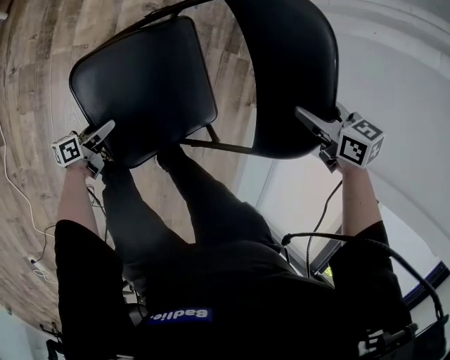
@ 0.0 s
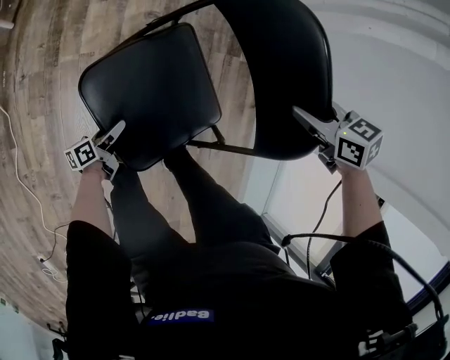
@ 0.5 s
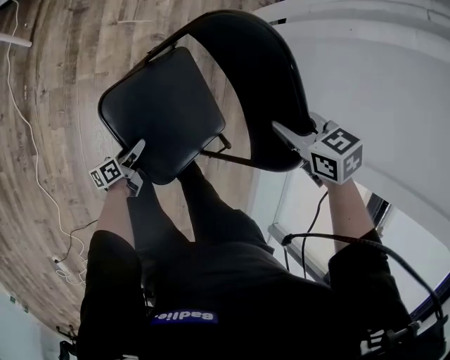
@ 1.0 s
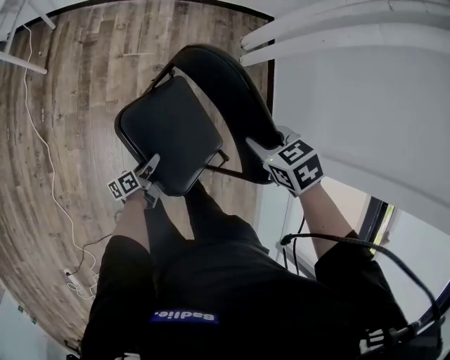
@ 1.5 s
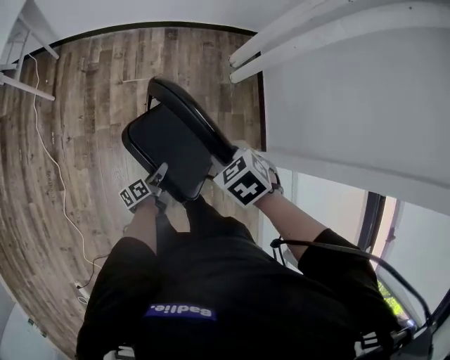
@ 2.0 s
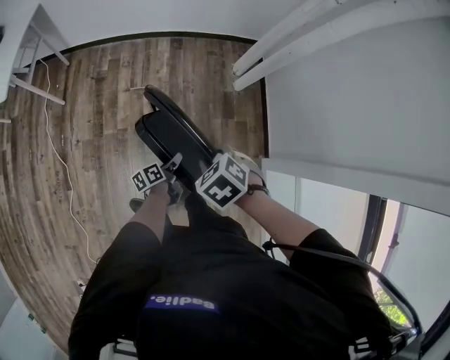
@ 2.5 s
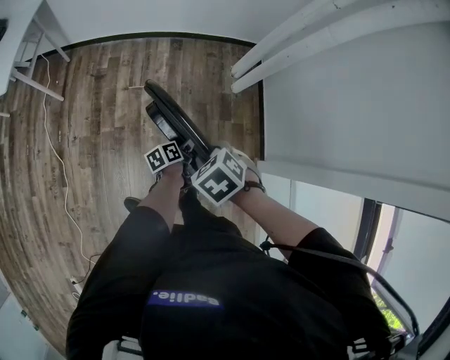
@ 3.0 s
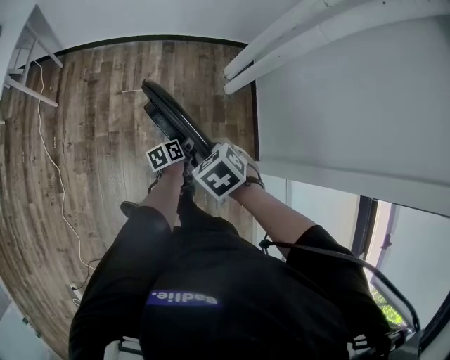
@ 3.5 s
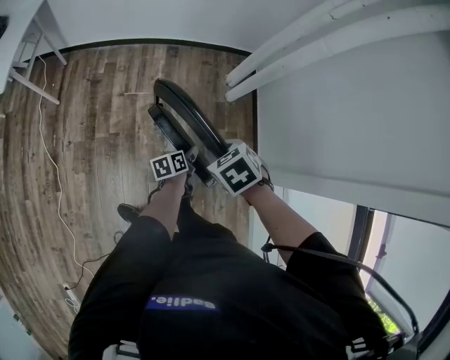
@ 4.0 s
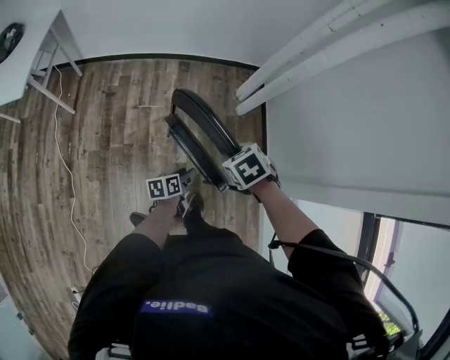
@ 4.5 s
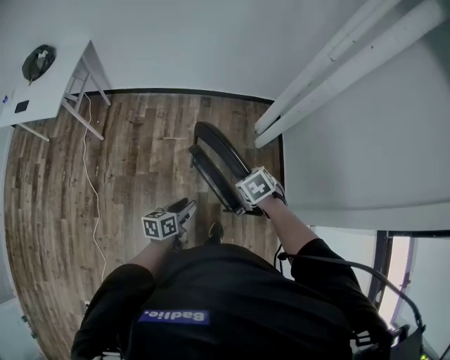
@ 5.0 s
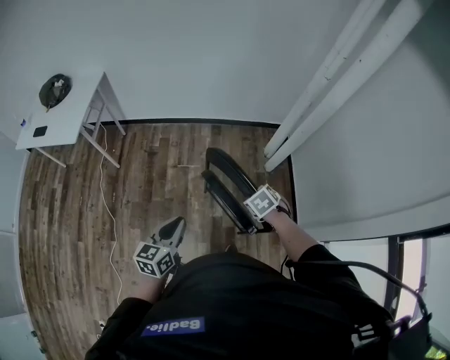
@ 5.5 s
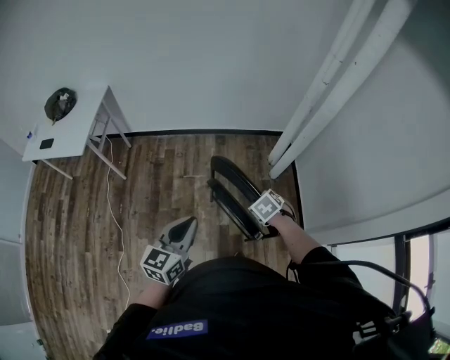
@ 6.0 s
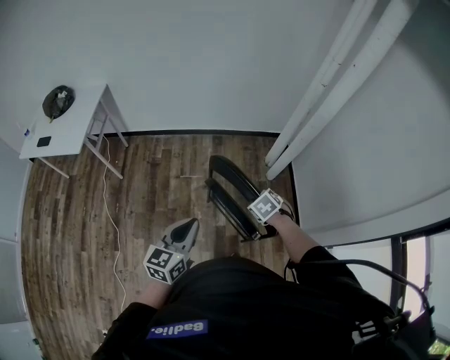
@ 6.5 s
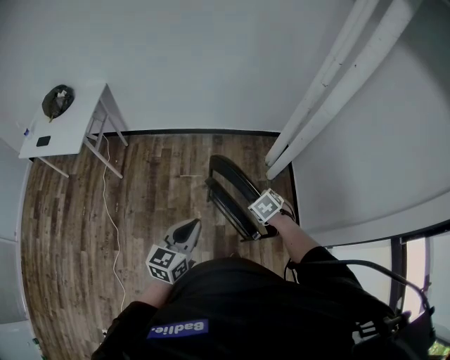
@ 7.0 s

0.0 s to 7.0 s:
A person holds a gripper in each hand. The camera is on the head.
0.0 to 2.0 s: The right gripper heads upward and to the left, covering about 20 cm, and closes. The left gripper shifts about 30 cm upward and to the right, and closes up.
2.0 to 3.5 s: The left gripper changes place by roughly 20 cm.
3.5 to 5.0 s: The left gripper travels upward, to the left and backward by approximately 25 cm, and rotates roughly 30 degrees; the right gripper changes place by roughly 5 cm.
5.0 to 7.0 s: The left gripper shifts roughly 20 cm upward, swivels roughly 30 degrees, and closes its fingers.

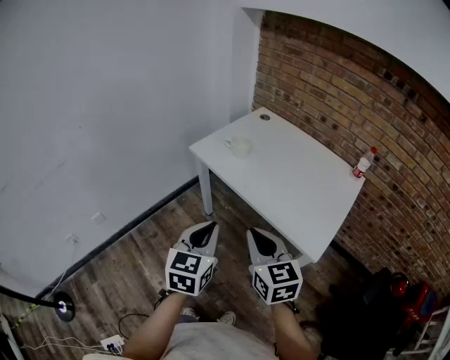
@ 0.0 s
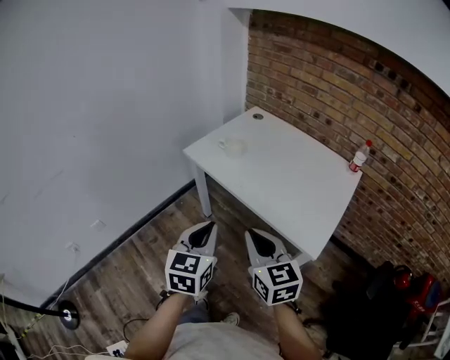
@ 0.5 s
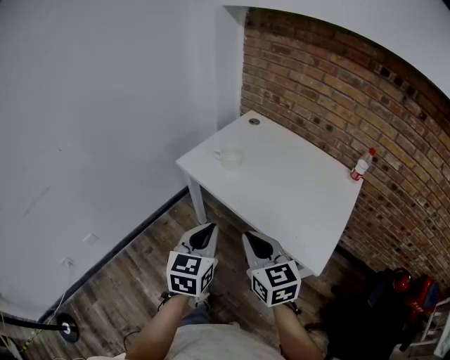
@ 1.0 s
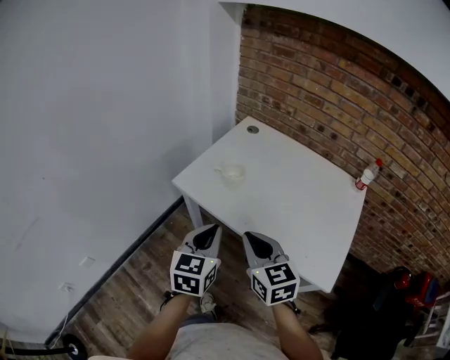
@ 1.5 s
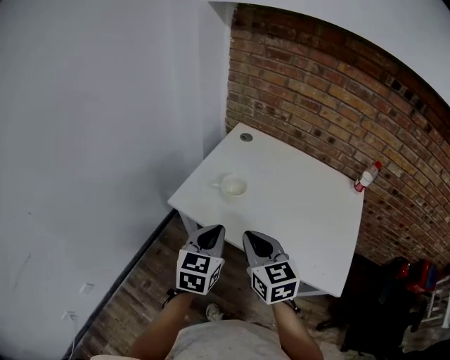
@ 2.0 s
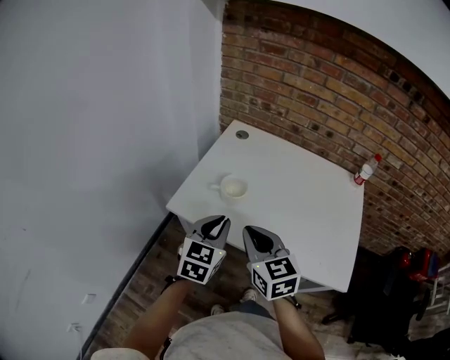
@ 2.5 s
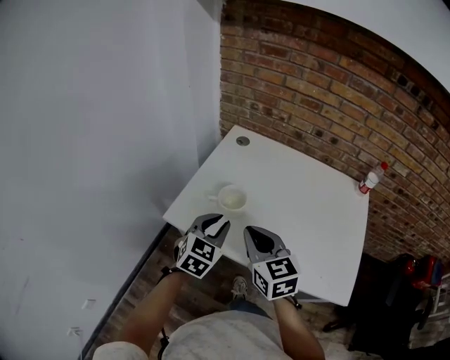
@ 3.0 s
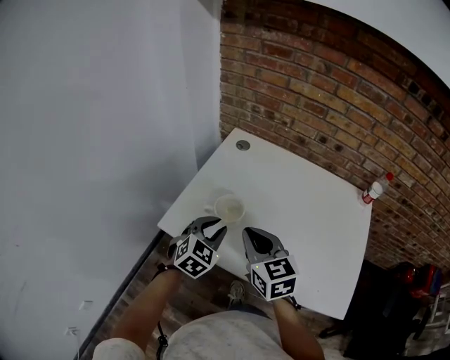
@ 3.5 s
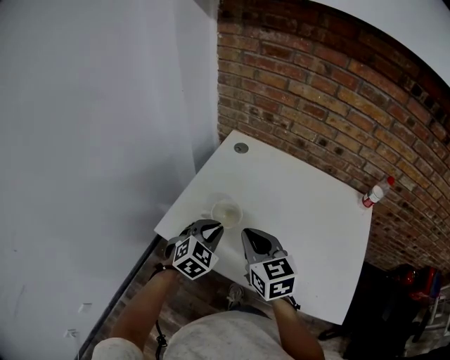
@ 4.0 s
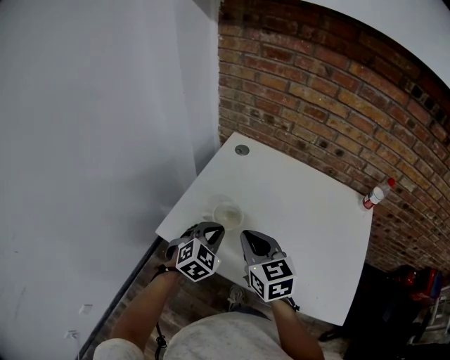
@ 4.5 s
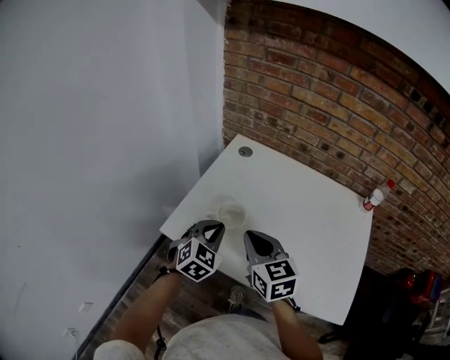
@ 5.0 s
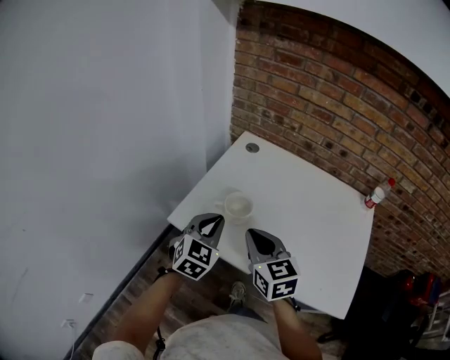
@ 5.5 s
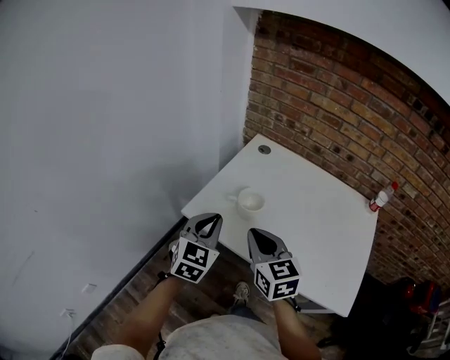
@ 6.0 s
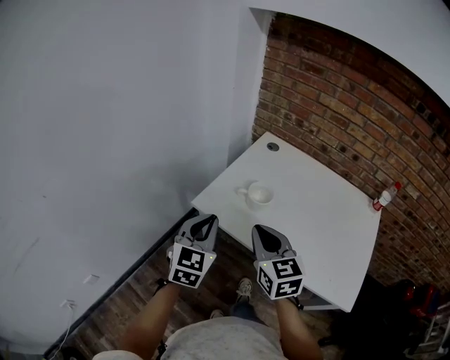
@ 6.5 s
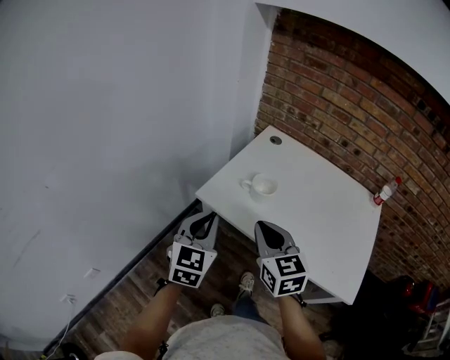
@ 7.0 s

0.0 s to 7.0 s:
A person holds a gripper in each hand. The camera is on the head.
0.0 to 2.0 s: The two grippers go some 30 cm forward.
2.0 to 3.5 s: The left gripper moves forward and downward, approximately 15 cm, rotates roughly 30 degrees, and opens up, while the right gripper is displaced forward by roughly 15 cm.
3.5 to 5.0 s: The grippers move only a little.
5.0 to 7.0 s: The left gripper moves backward, to the left and upward, roughly 20 cm, and turns by some 30 degrees, while the right gripper heads backward and to the left, covering roughly 15 cm.

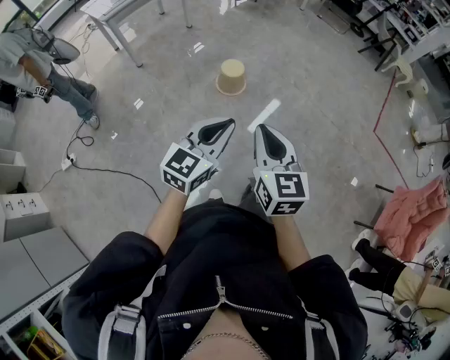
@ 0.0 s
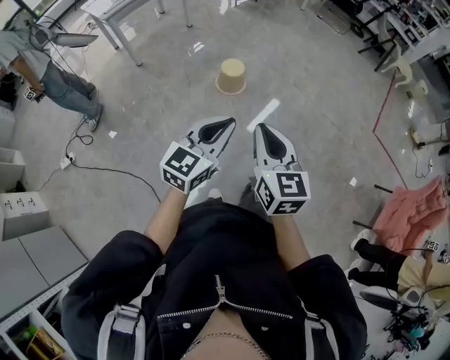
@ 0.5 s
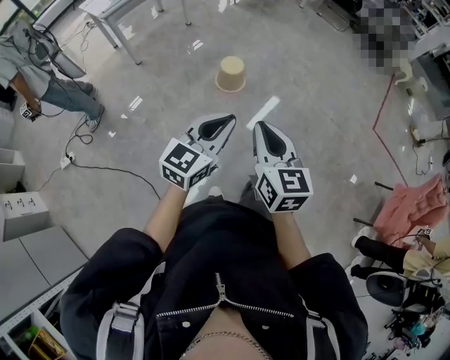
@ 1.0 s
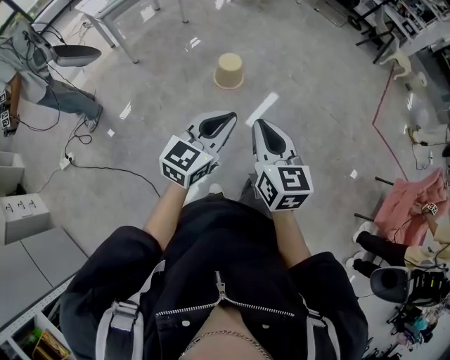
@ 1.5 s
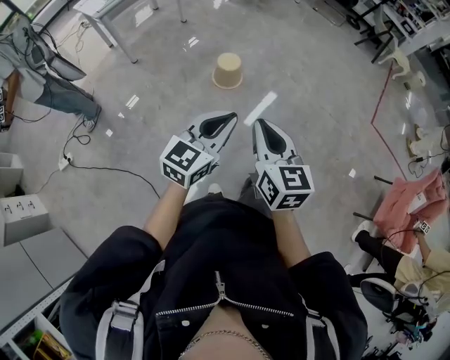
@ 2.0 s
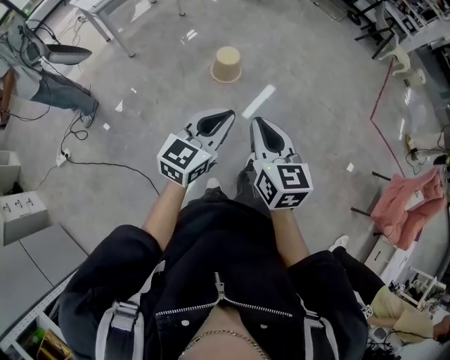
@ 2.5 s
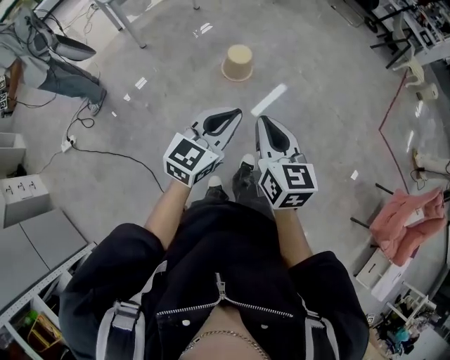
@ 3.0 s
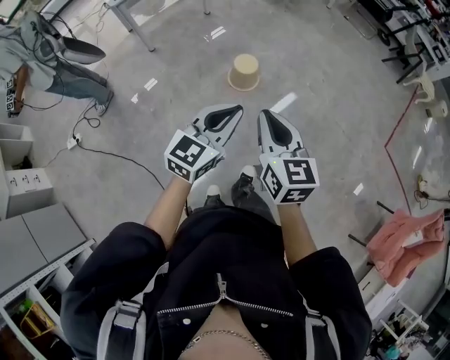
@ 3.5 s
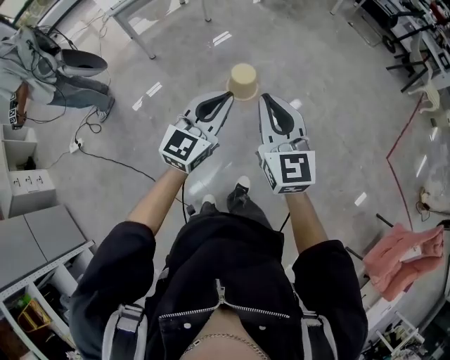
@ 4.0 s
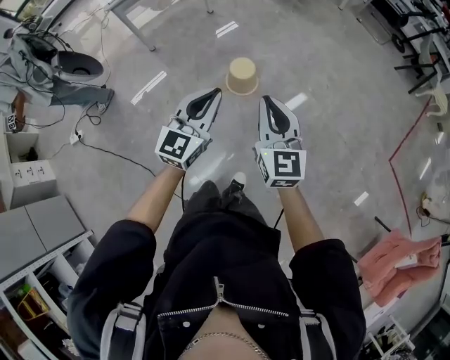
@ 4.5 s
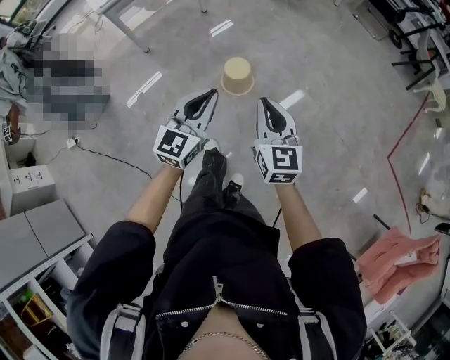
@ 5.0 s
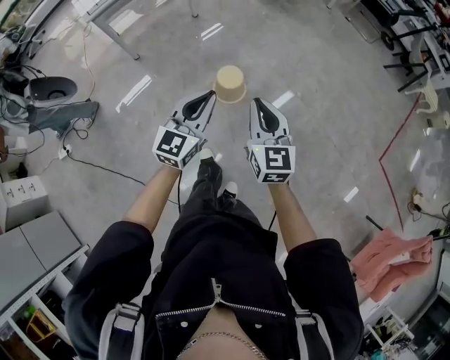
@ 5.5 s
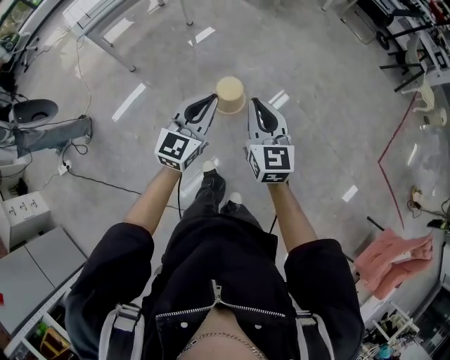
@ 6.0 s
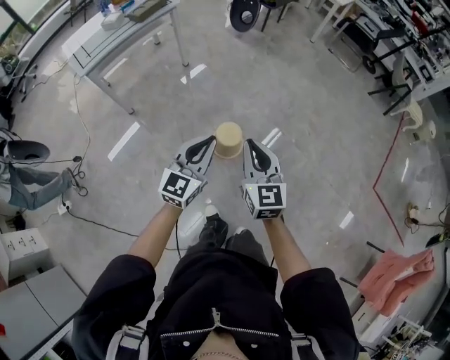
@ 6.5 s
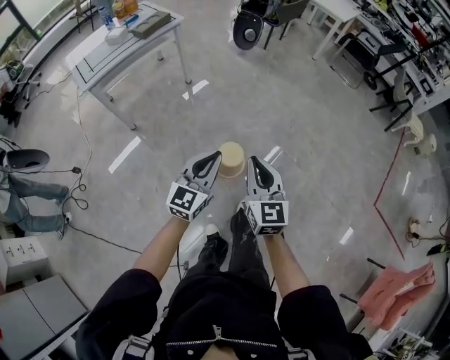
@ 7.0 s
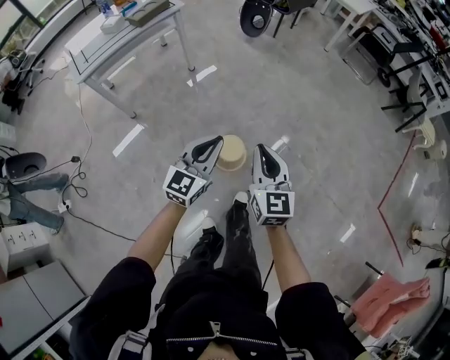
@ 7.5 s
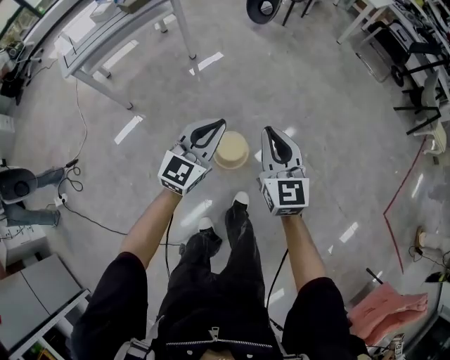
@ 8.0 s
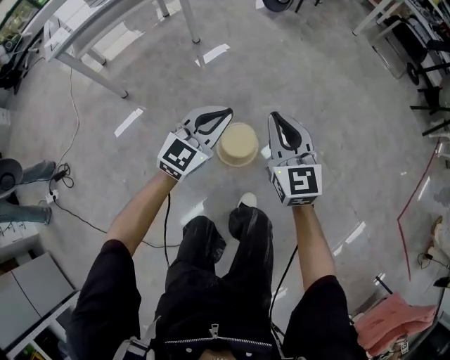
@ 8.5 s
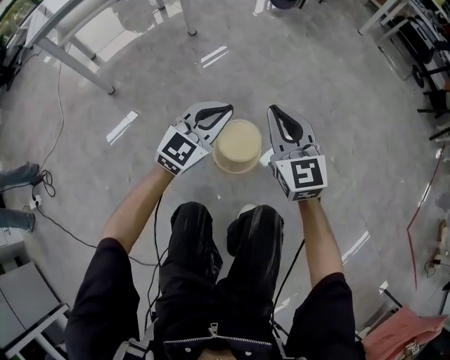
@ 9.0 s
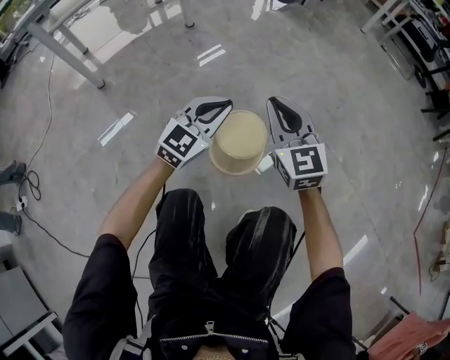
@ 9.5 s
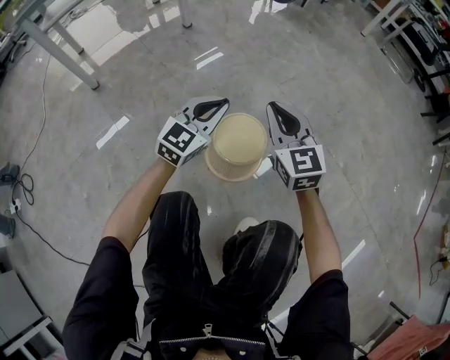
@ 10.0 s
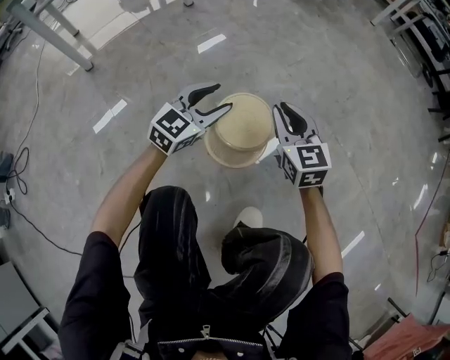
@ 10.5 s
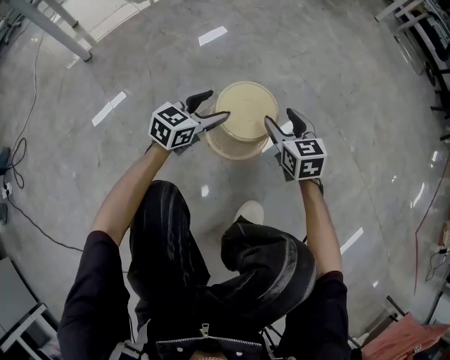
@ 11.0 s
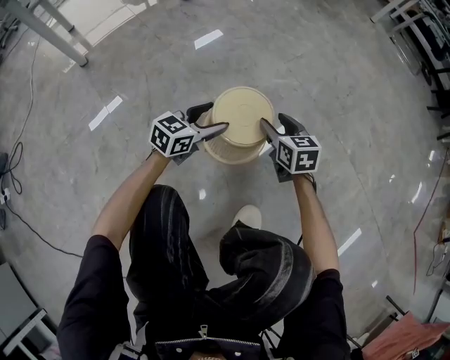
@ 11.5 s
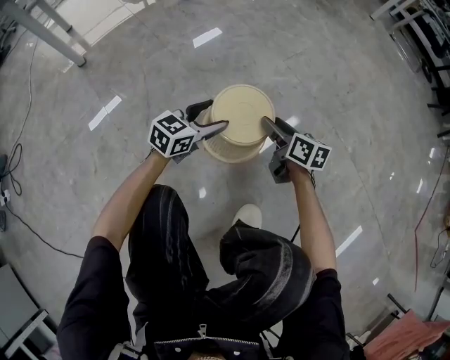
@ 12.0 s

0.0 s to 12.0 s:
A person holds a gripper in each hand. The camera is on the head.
0.0 to 2.0 s: The grippers move only a little.
2.0 to 4.0 s: The grippers both shift forward by about 20 cm. The right gripper rotates approximately 20 degrees.
4.0 to 6.0 s: The right gripper shifts roughly 25 cm forward and downward. The left gripper moves forward, approximately 20 cm.
6.0 to 8.0 s: The grippers both shift forward by approximately 25 cm.
8.0 to 10.0 s: The two grippers go approximately 50 cm downward.
10.0 to 12.0 s: Both grippers travel together downward, some 20 cm. The left gripper rotates some 30 degrees, and opens up. The right gripper rolls clockwise, seen from behind, by approximately 50 degrees, and opens.
